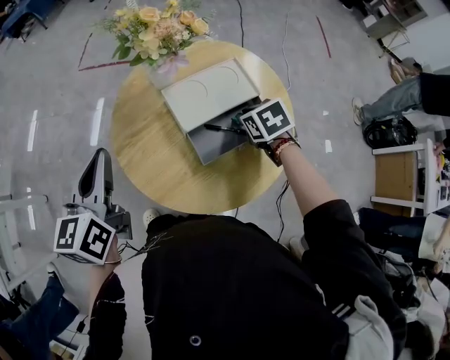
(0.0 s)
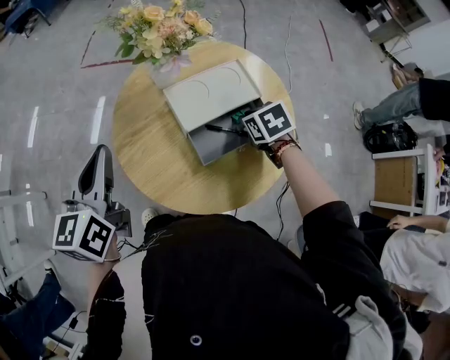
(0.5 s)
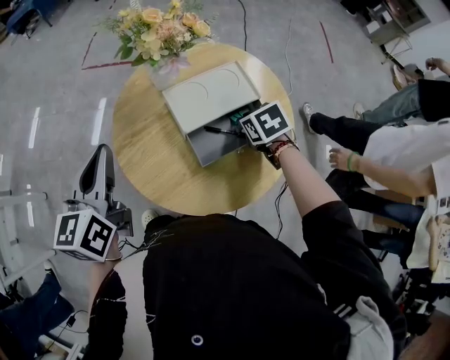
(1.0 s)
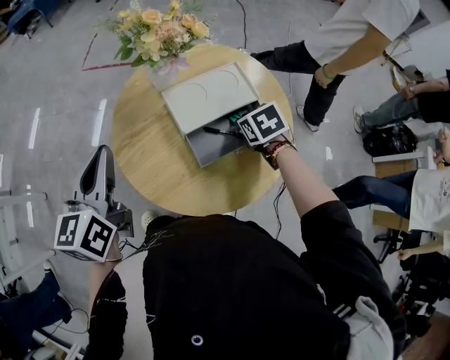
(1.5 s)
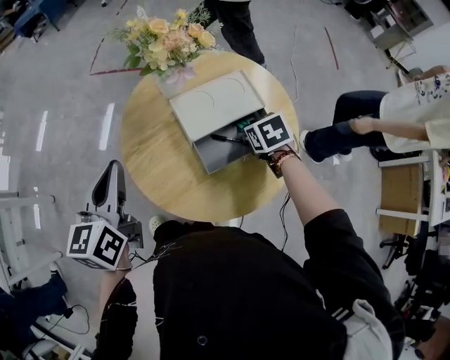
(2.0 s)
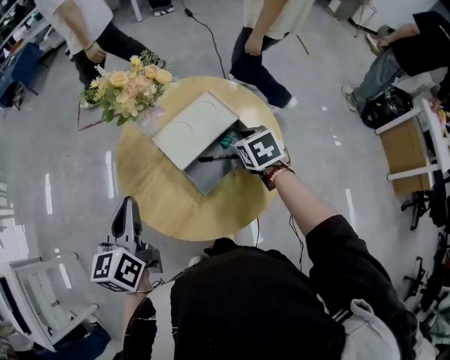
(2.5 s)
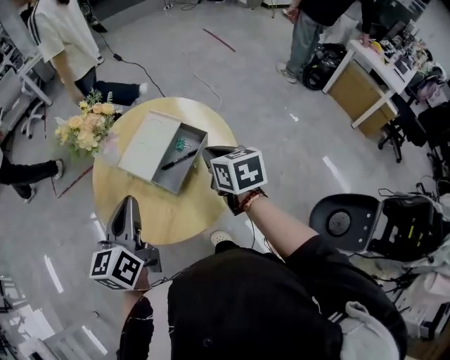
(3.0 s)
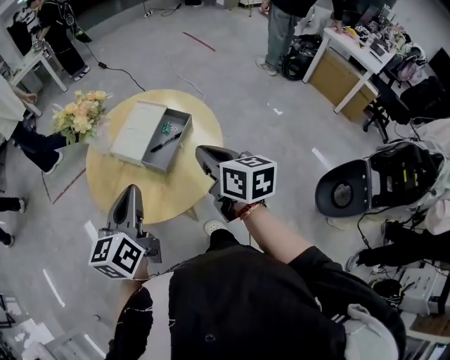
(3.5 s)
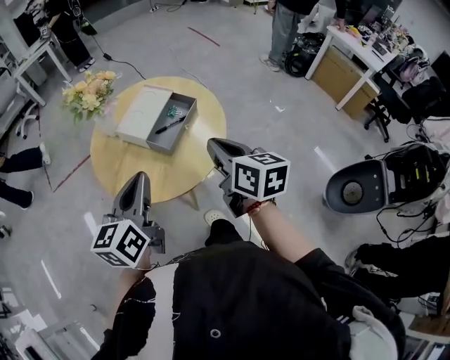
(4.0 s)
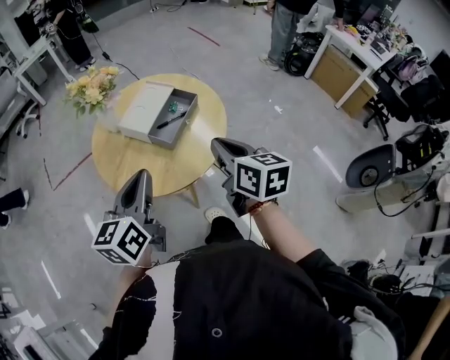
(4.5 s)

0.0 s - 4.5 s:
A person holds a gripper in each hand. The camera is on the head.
0.0 s - 2.0 s: The grippers move only a little.
2.0 s - 4.5 s: The right gripper shifts by approximately 35 cm, and tilts its fingers approximately 50 degrees upward, while the left gripper changes place by approximately 15 cm, and rotates some 40 degrees.

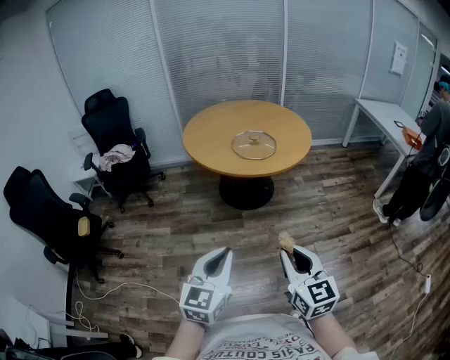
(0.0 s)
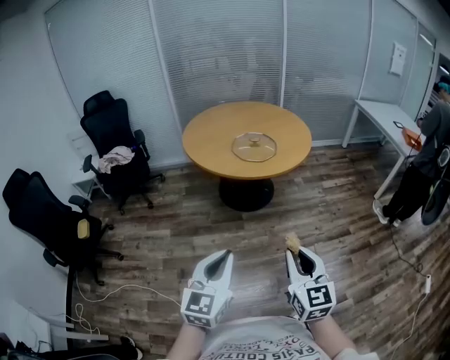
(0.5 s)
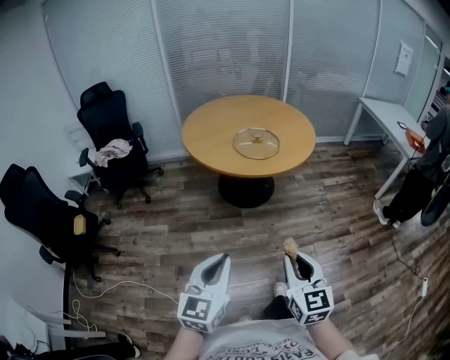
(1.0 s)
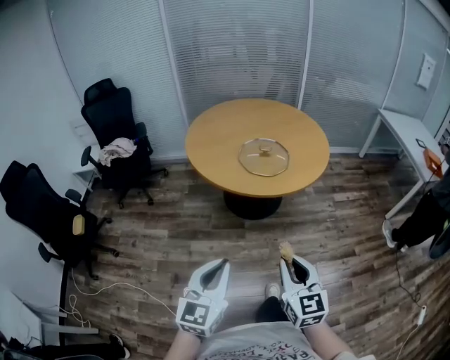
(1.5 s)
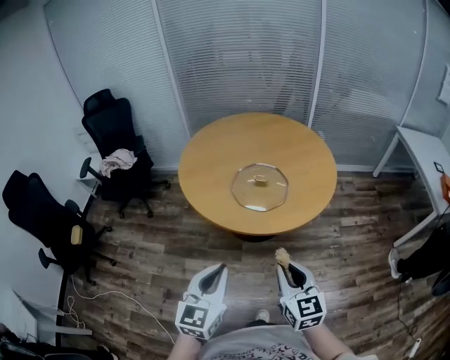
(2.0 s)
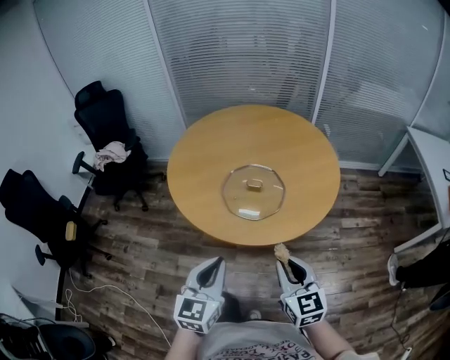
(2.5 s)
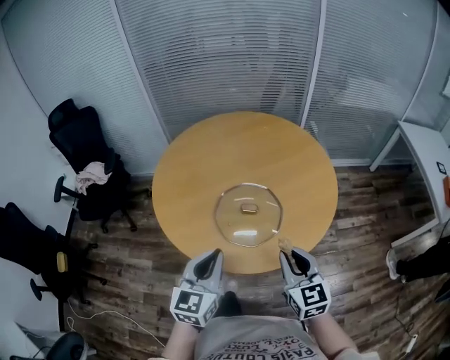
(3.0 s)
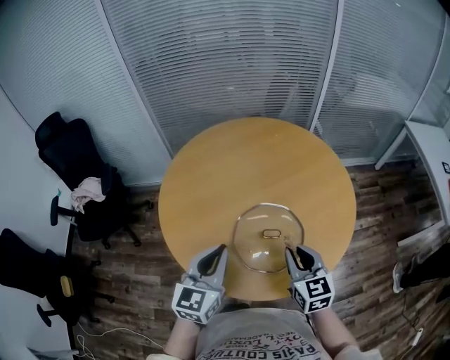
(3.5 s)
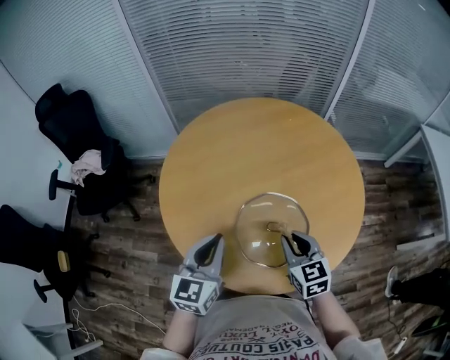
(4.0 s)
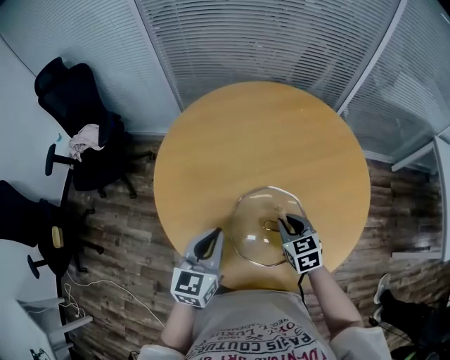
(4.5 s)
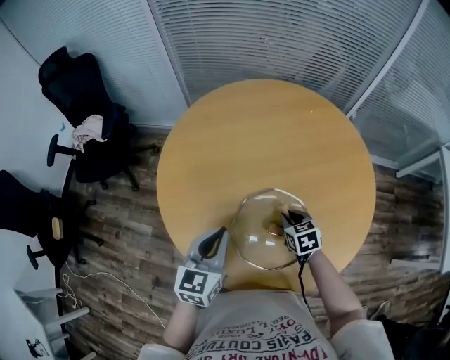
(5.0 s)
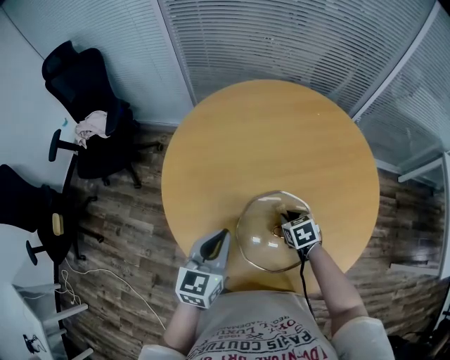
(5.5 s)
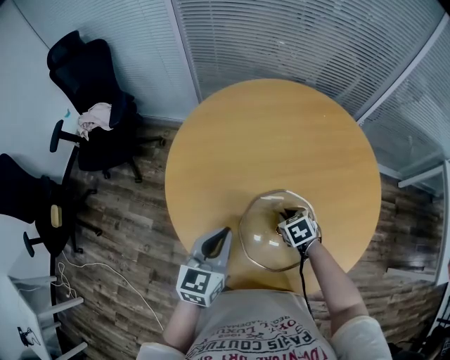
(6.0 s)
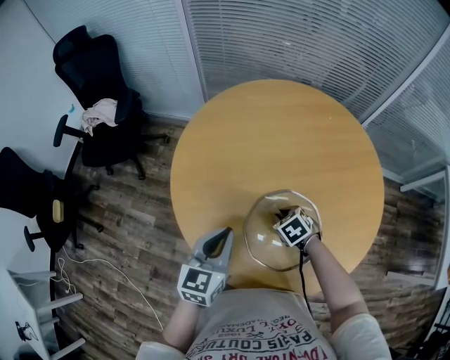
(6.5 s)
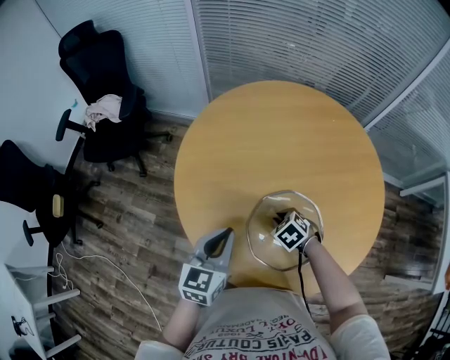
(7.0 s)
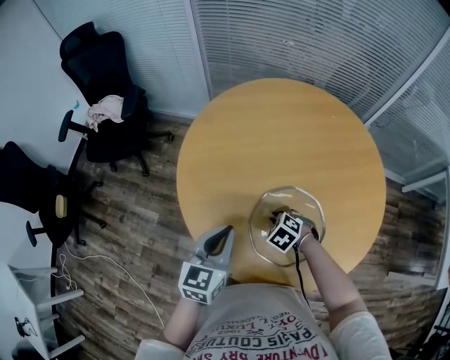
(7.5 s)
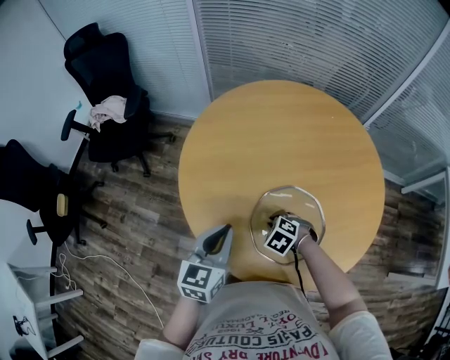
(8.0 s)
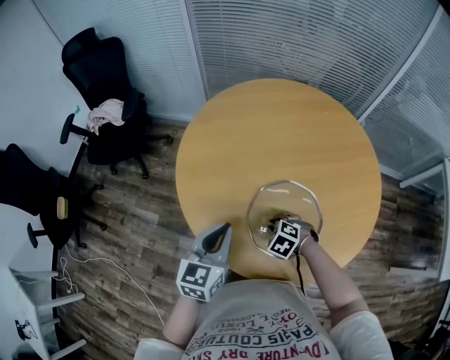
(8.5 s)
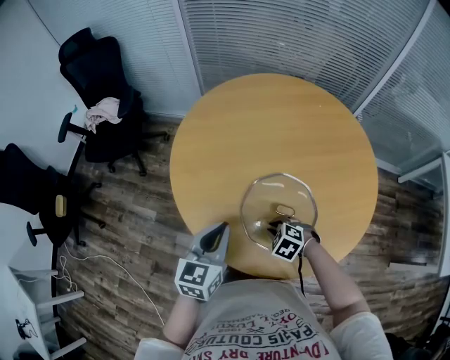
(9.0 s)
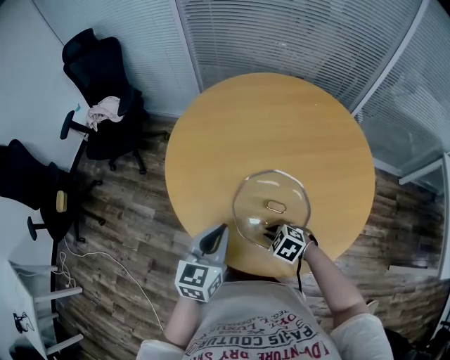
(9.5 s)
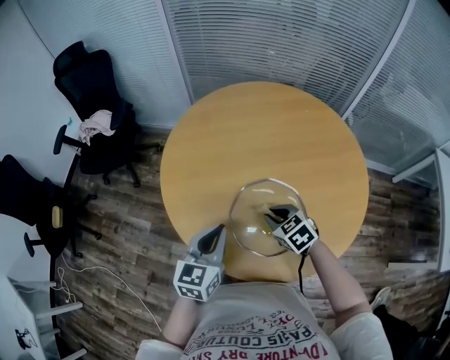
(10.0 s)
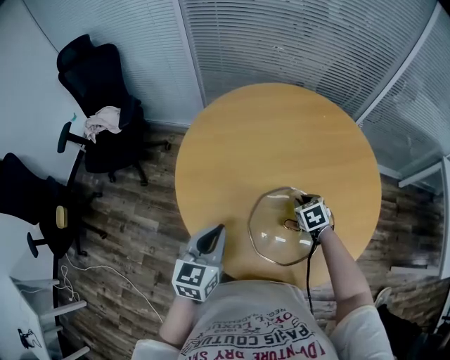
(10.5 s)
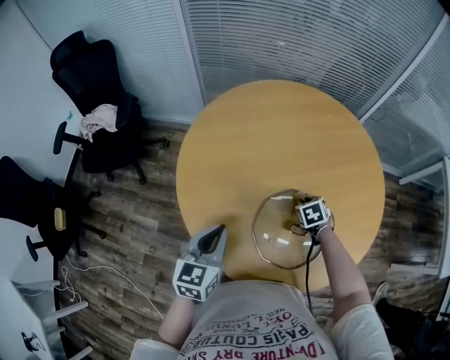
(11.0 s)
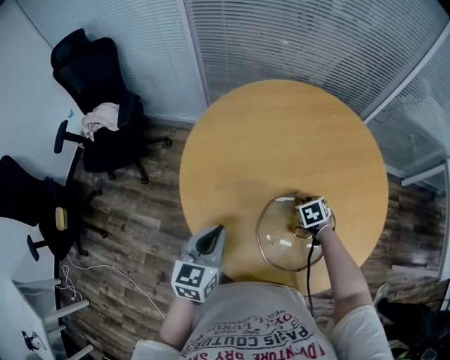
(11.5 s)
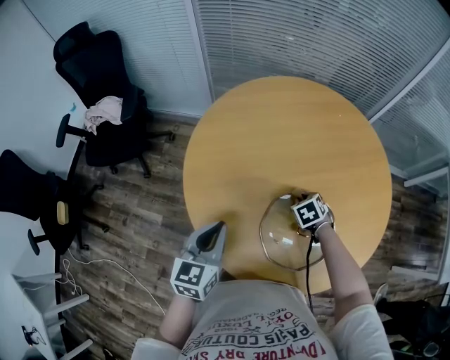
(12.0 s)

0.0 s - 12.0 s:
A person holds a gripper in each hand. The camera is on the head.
0.0 s - 2.0 s: The two grippers go roughly 35 cm forward.
2.0 s - 4.0 s: Both grippers are carried forward, approximately 50 cm.
4.0 s - 6.0 s: The left gripper moves downward, roughly 5 cm. The right gripper travels downward and forward by approximately 20 cm, and points its fingers some 40 degrees further downward.
6.0 s - 8.0 s: The left gripper ends up roughly 5 cm from where it was. Meanwhile the right gripper changes place by about 10 cm, and turns by about 40 degrees.
8.0 s - 10.0 s: The left gripper changes place by approximately 5 cm, while the right gripper travels upward by roughly 10 cm, and turns by some 30 degrees.
10.0 s - 12.0 s: The left gripper changes place by approximately 15 cm, while the right gripper ends up approximately 15 cm from where it was, and rotates some 30 degrees.

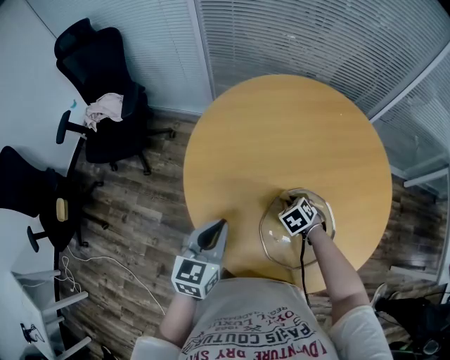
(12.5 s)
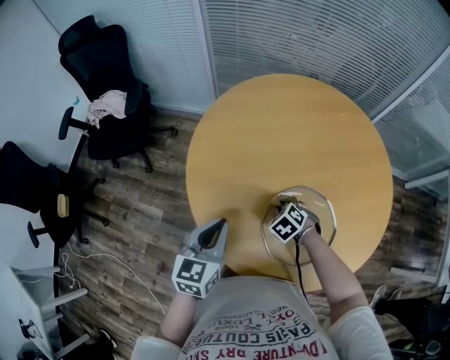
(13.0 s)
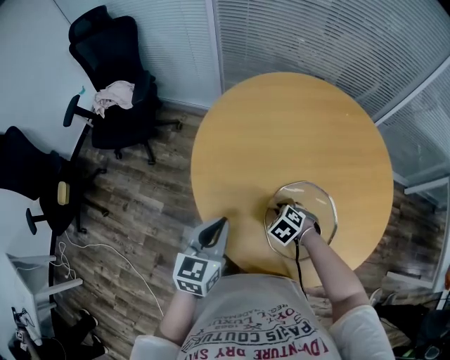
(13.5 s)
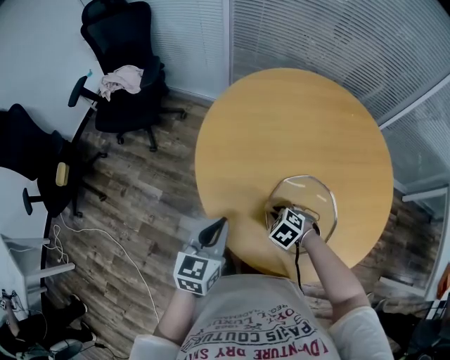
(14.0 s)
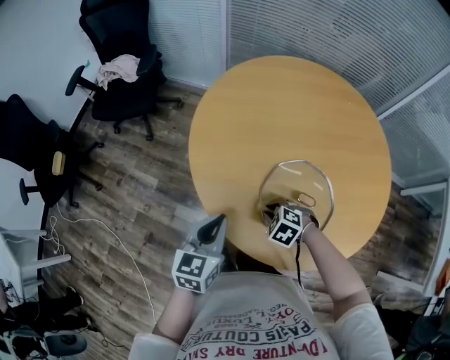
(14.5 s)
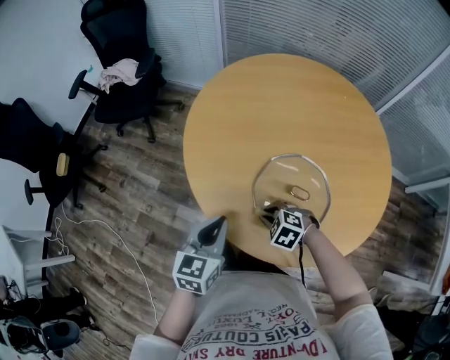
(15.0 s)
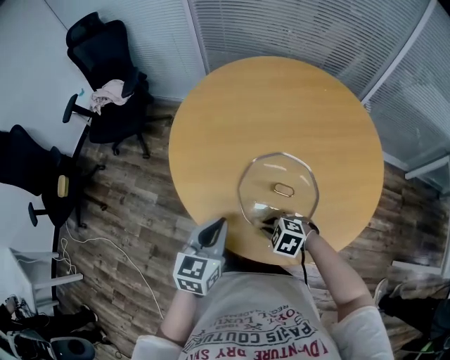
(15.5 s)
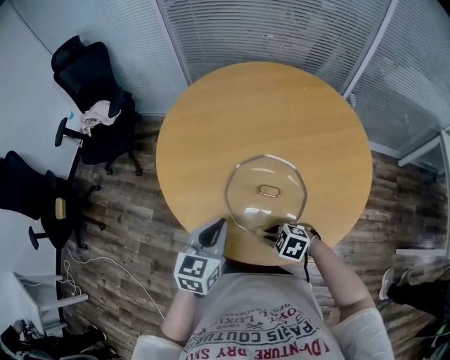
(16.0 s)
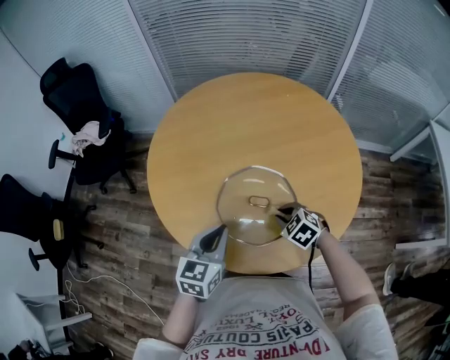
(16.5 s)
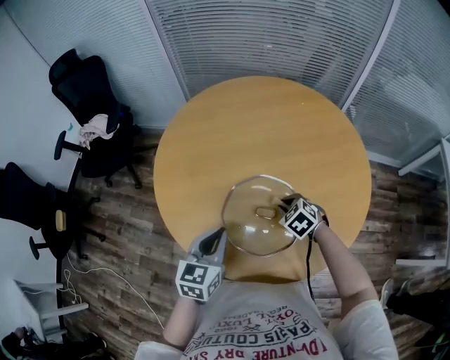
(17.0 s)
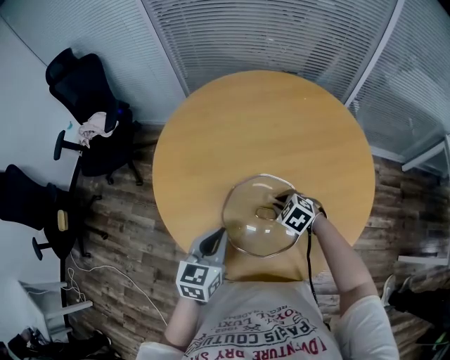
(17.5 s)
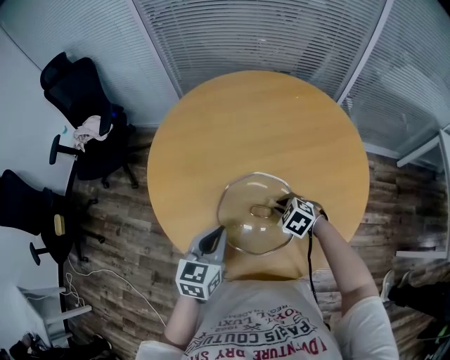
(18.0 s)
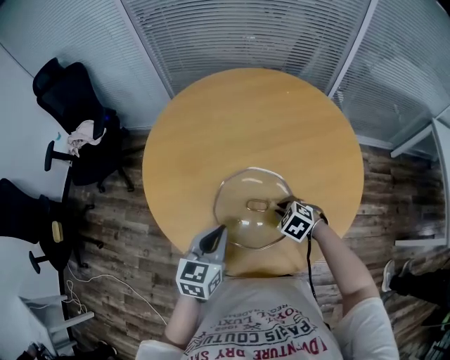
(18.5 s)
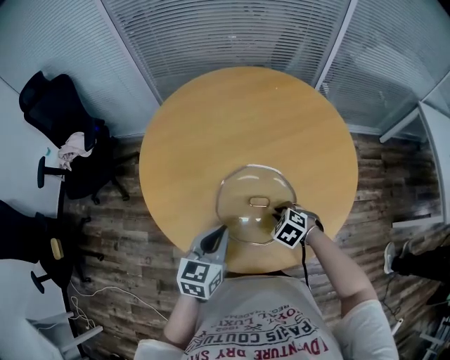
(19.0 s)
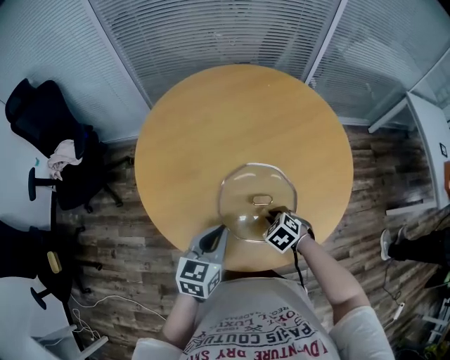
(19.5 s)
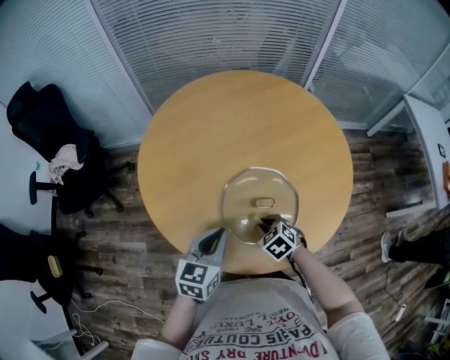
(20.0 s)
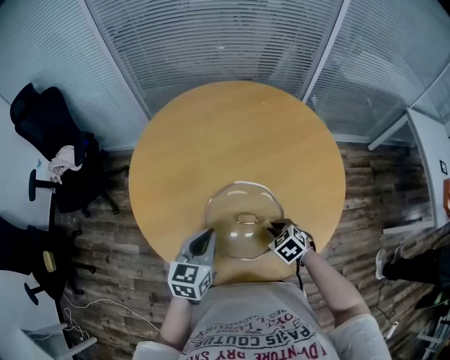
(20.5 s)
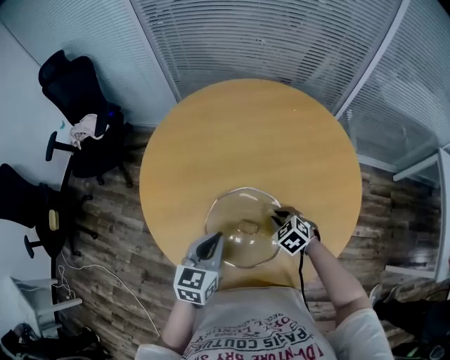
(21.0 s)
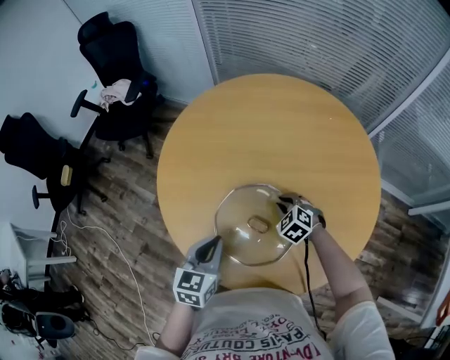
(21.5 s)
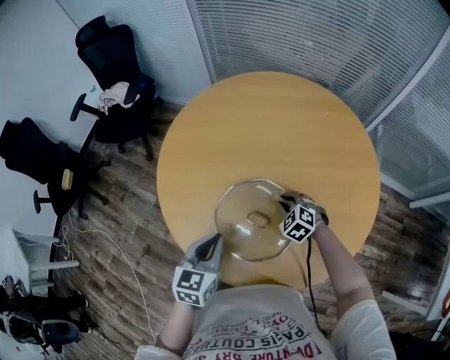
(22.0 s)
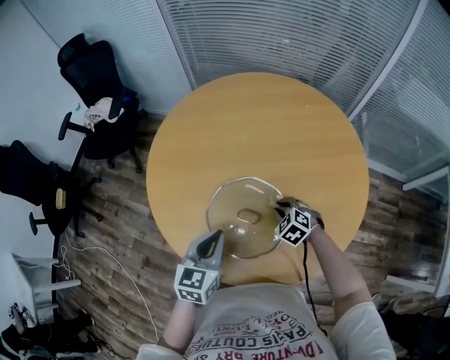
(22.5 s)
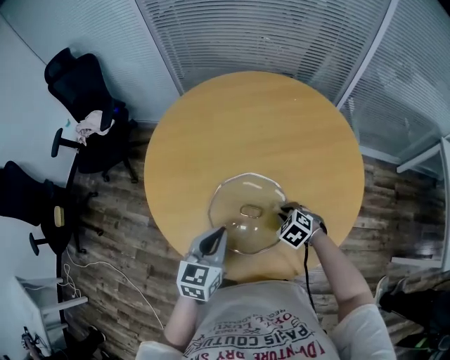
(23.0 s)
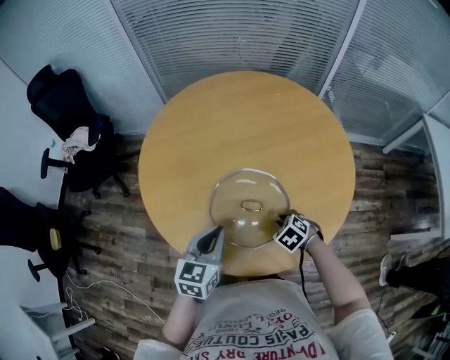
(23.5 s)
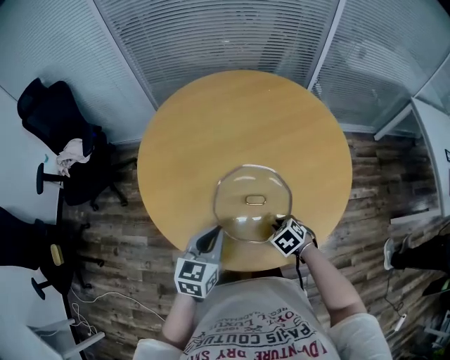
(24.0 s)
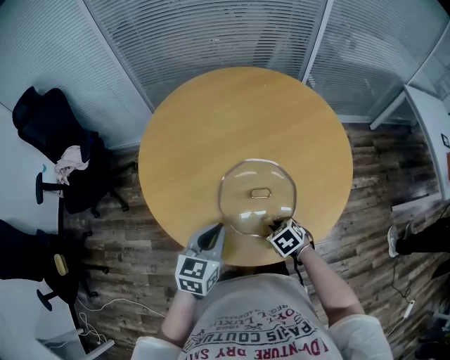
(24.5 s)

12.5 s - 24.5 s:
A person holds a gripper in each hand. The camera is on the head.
12.5 s - 14.5 s: The left gripper shifts by about 15 cm; the right gripper changes place by about 20 cm, and turns by roughly 40 degrees.
14.5 s - 16.5 s: The two grippers go about 15 cm to the right. The right gripper turns by roughly 30 degrees.
18.5 s - 20.5 s: The right gripper travels to the left and back again, some 10 cm each way, and swivels about 20 degrees.
20.5 s - 22.5 s: The left gripper moves roughly 5 cm, while the right gripper goes approximately 10 cm forward, and turns by about 30 degrees.
22.5 s - 24.5 s: The left gripper moves to the left, roughly 10 cm, and changes its angle by roughly 30 degrees. Meanwhile the right gripper moves backward and to the left, some 20 cm, and rolls clockwise, seen from behind, by roughly 40 degrees.
